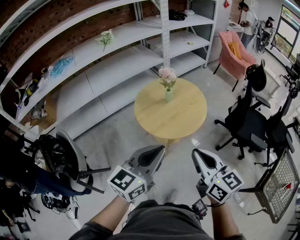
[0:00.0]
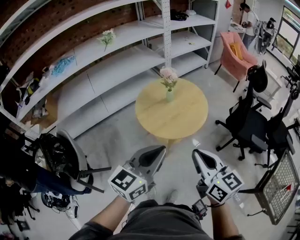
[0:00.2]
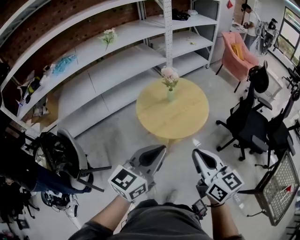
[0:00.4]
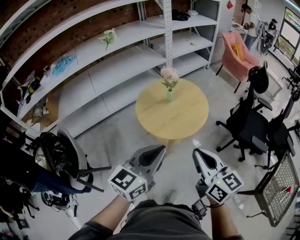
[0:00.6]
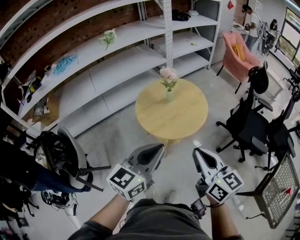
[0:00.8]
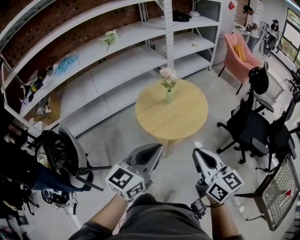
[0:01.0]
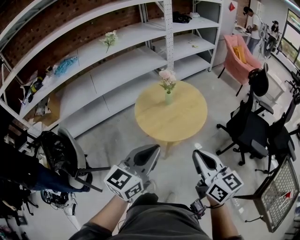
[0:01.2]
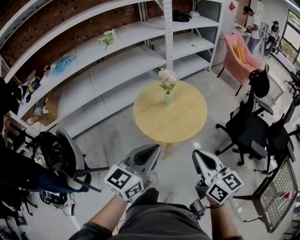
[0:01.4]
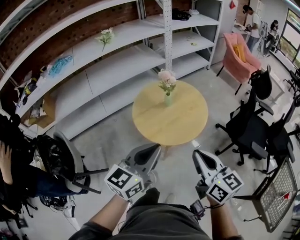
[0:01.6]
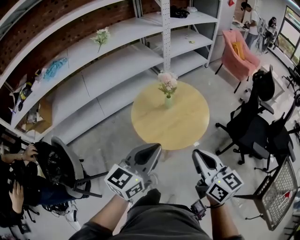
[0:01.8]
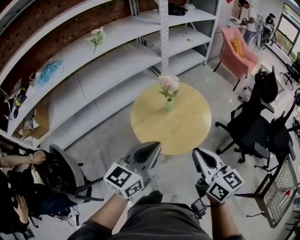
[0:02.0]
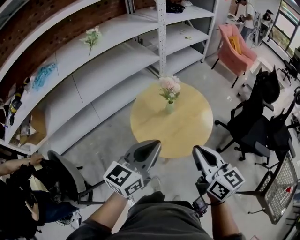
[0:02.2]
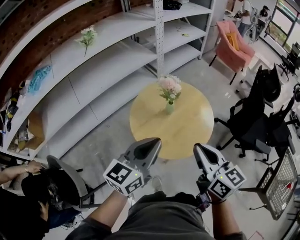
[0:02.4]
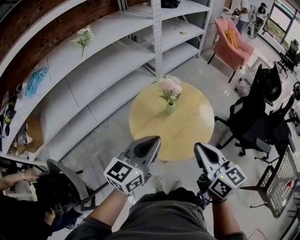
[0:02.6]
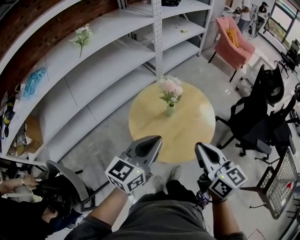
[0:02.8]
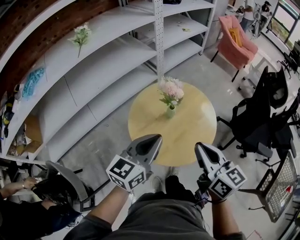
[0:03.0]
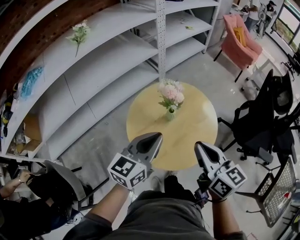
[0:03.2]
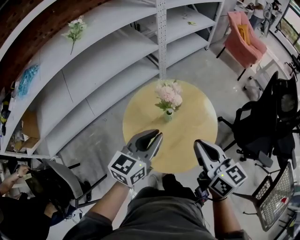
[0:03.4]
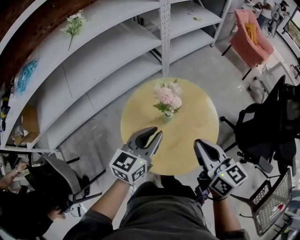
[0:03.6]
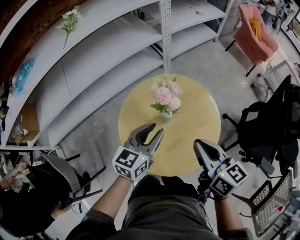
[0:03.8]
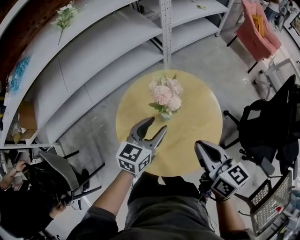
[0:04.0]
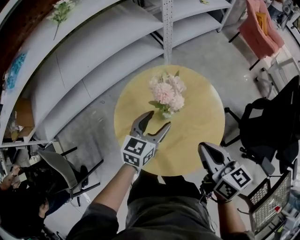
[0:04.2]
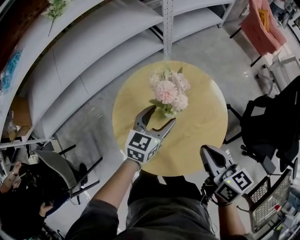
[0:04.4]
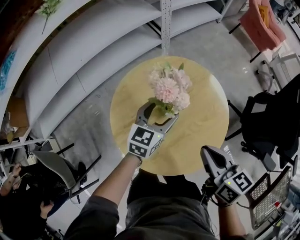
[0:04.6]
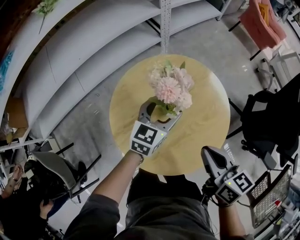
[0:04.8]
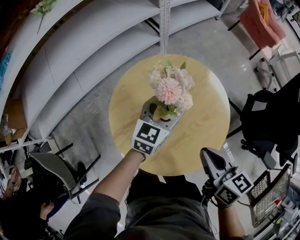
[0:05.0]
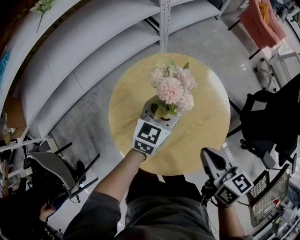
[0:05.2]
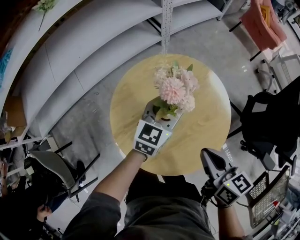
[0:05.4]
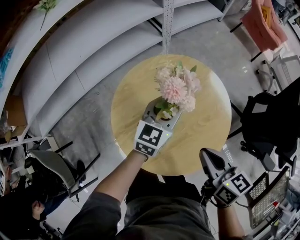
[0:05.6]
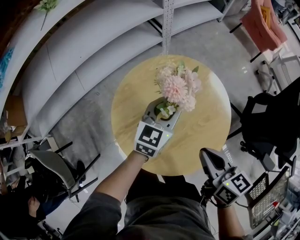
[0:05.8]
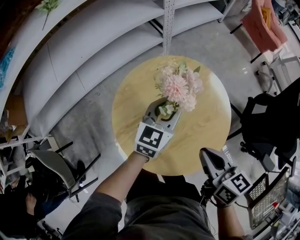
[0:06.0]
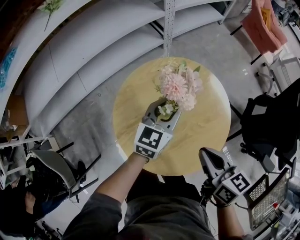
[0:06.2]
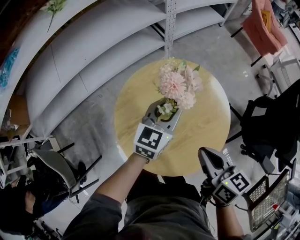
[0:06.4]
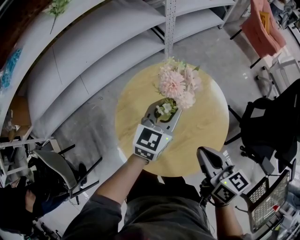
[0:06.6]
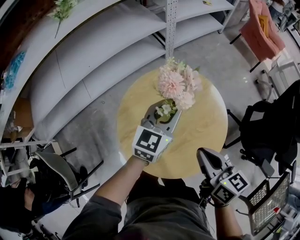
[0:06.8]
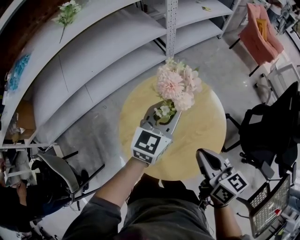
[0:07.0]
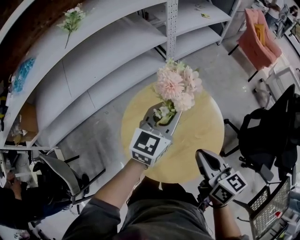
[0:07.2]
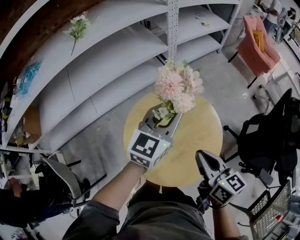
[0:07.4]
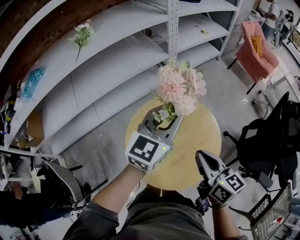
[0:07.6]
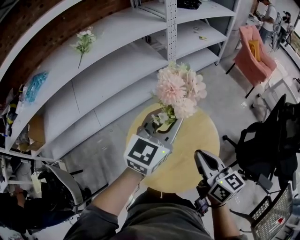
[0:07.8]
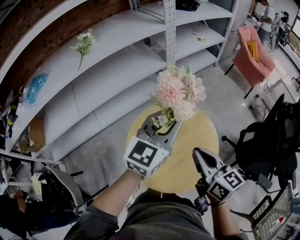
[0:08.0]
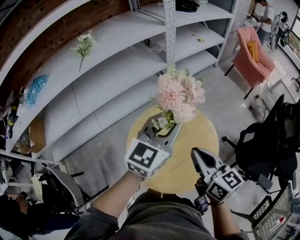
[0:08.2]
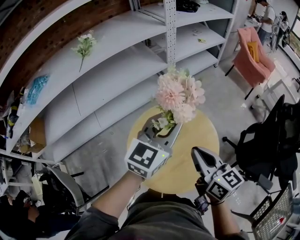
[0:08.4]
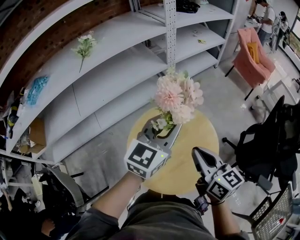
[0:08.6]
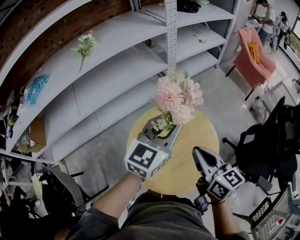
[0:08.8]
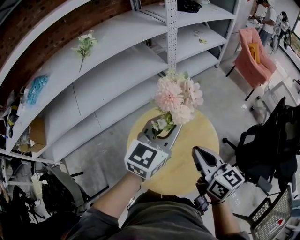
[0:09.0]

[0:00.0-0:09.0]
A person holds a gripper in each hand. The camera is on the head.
0:00.0 to 0:01.6: Both grippers travel together forward, some 5 cm.
0:01.6 to 0:03.0: The two grippers go approximately 25 cm forward.
0:03.0 to 0:04.4: The left gripper heads downward and forward, covering approximately 30 cm, and opens its fingers. Meanwhile the right gripper is displaced forward, downward and to the right by approximately 20 cm.
0:04.4 to 0:06.0: The left gripper closes its fingers.
0:06.0 to 0:07.6: The left gripper travels upward by roughly 25 cm. The right gripper heads upward, covering approximately 10 cm.
0:07.6 to 0:09.0: The grippers make only small movements.

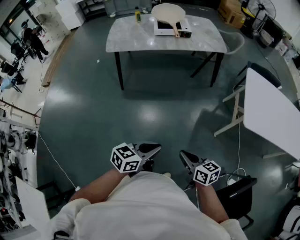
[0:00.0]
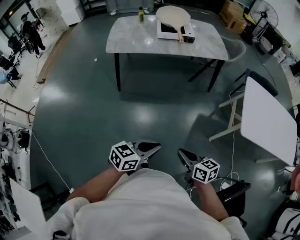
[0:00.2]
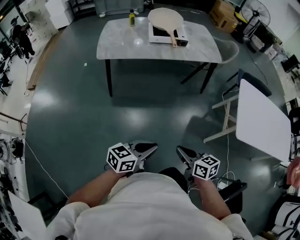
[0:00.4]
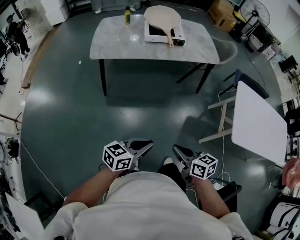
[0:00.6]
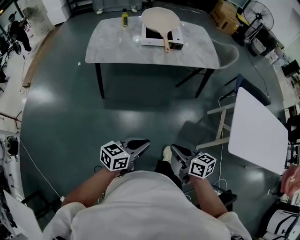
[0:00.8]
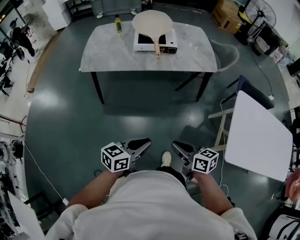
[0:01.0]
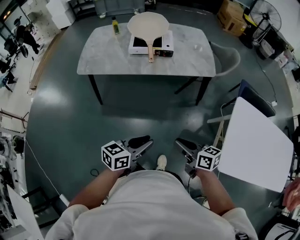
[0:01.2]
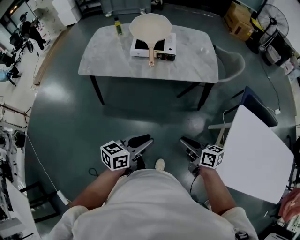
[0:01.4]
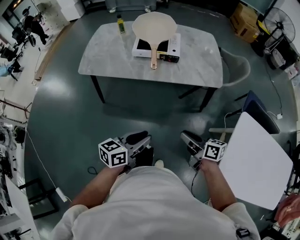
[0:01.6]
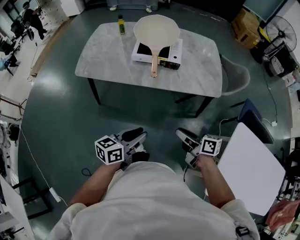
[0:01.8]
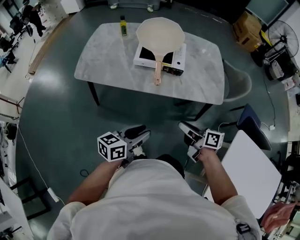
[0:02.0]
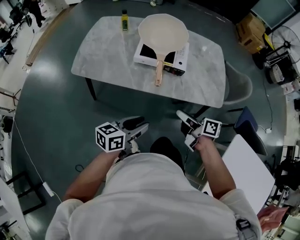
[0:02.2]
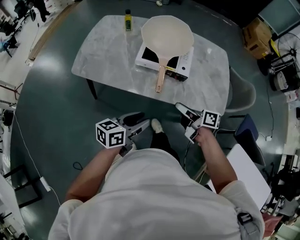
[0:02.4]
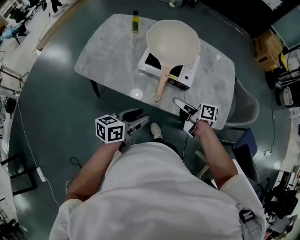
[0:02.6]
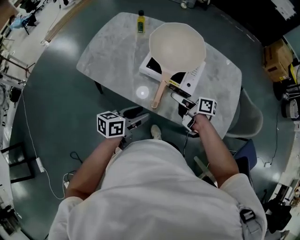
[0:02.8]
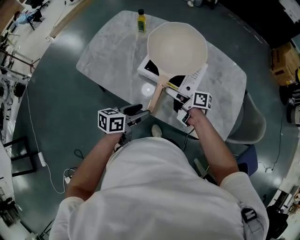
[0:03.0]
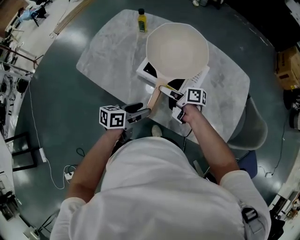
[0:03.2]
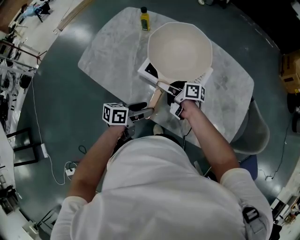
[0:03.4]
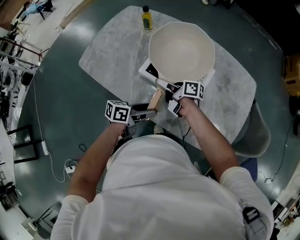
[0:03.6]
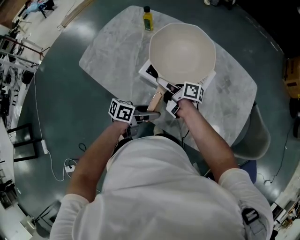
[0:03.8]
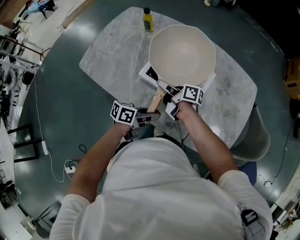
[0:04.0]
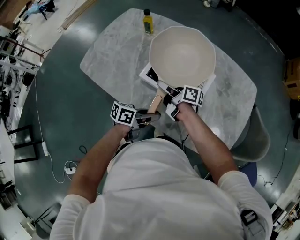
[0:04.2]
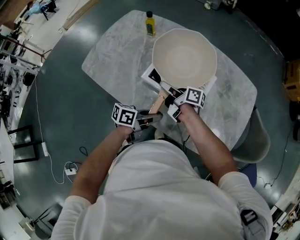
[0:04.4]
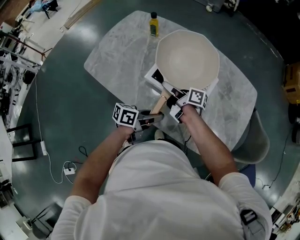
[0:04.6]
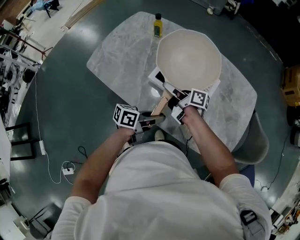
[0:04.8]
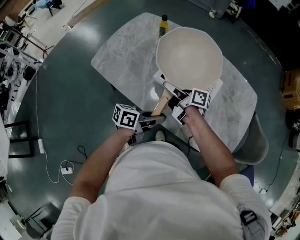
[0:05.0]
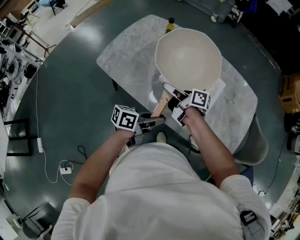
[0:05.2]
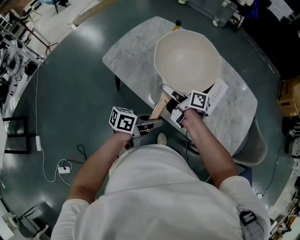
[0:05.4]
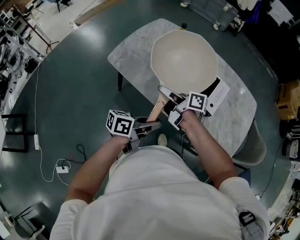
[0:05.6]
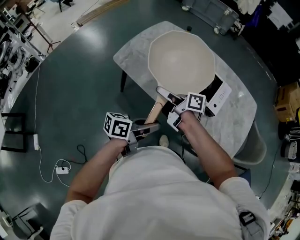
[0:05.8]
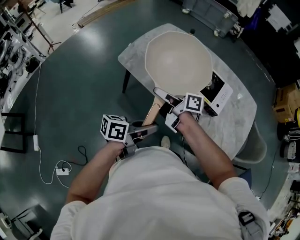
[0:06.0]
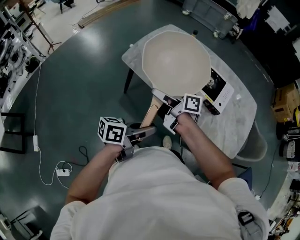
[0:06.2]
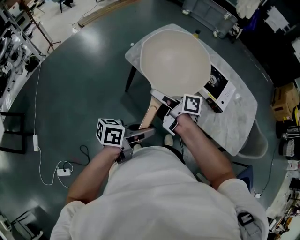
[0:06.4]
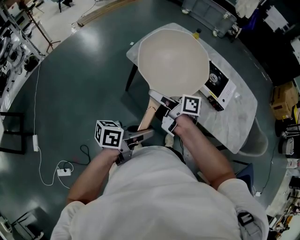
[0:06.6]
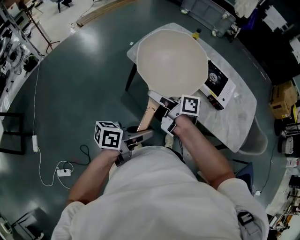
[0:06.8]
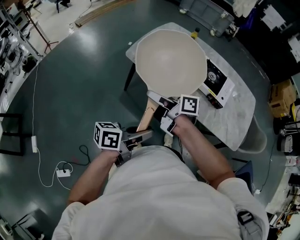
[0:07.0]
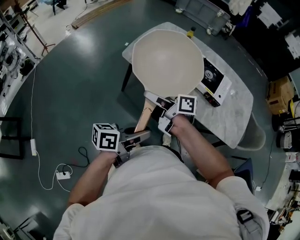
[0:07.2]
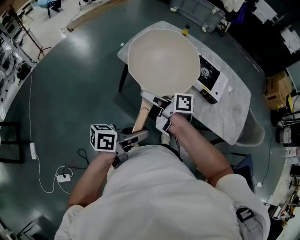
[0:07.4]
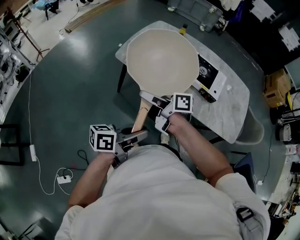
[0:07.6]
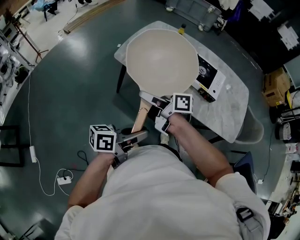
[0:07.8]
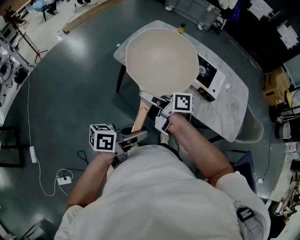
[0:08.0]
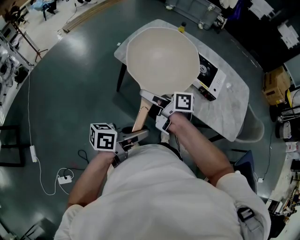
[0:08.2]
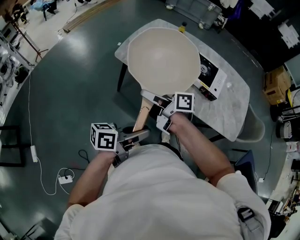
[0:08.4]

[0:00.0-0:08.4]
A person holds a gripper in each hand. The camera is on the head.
0:00.0 to 0:01.4: The grippers both shift forward by some 40 cm.
0:01.4 to 0:02.8: The pair of grippers is taken forward, roughly 50 cm. The right gripper turns by roughly 30 degrees, and opens its fingers, while the left gripper turns by approximately 20 degrees, and opens up.
0:02.8 to 0:04.2: The left gripper shifts by approximately 15 cm, and closes. The right gripper changes place by some 15 cm.
0:04.2 to 0:05.6: Both grippers move to the left, backward and upward, about 20 cm.
0:05.6 to 0:07.0: Both grippers travel together to the left, backward and upward, about 15 cm.
0:07.0 to 0:08.4: Neither gripper changes place.

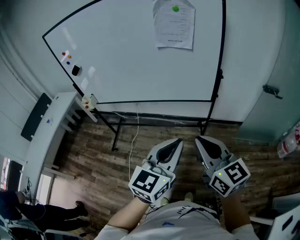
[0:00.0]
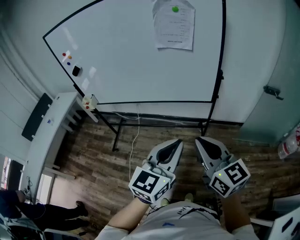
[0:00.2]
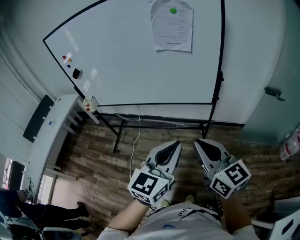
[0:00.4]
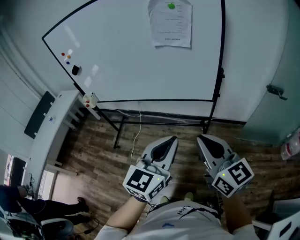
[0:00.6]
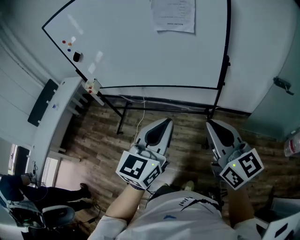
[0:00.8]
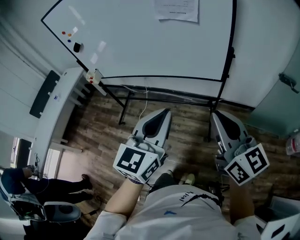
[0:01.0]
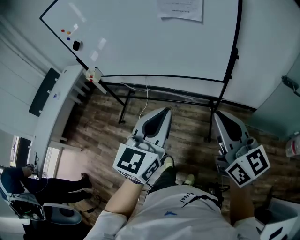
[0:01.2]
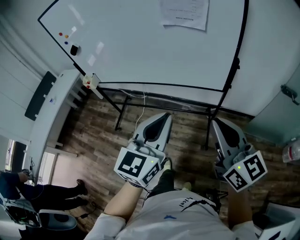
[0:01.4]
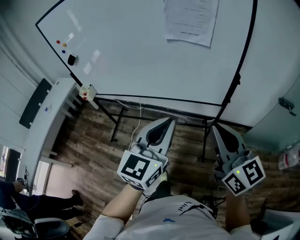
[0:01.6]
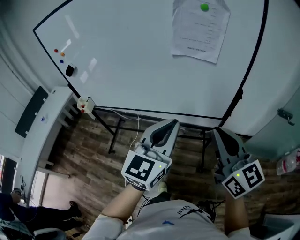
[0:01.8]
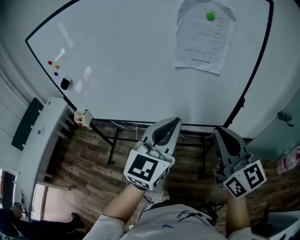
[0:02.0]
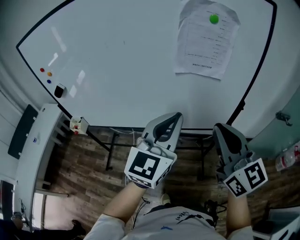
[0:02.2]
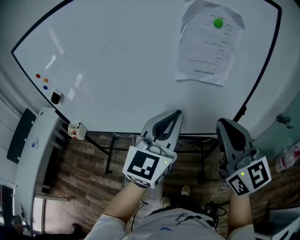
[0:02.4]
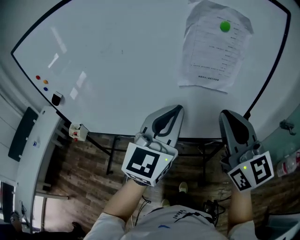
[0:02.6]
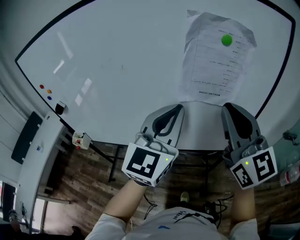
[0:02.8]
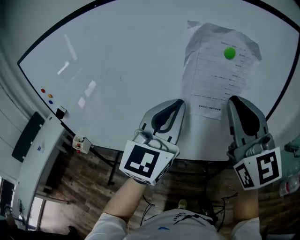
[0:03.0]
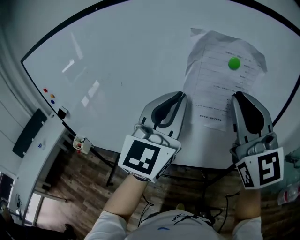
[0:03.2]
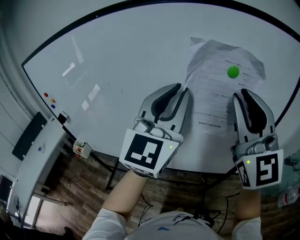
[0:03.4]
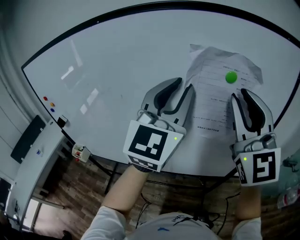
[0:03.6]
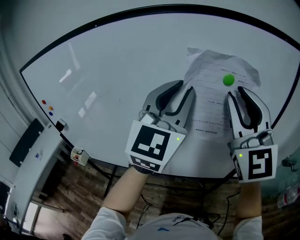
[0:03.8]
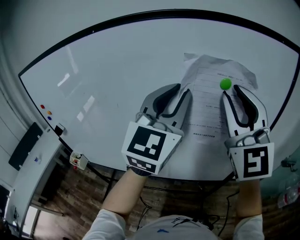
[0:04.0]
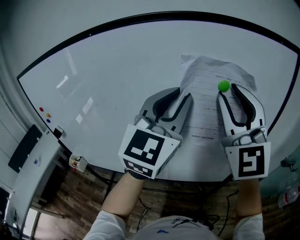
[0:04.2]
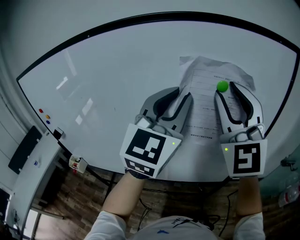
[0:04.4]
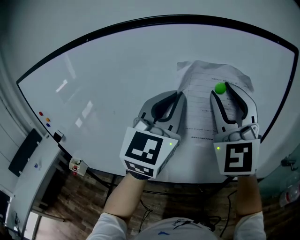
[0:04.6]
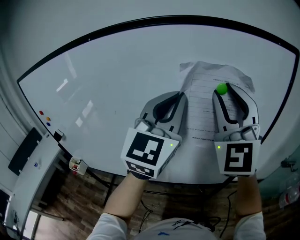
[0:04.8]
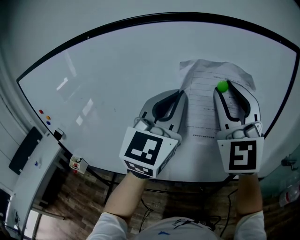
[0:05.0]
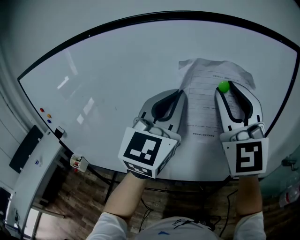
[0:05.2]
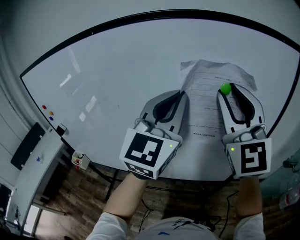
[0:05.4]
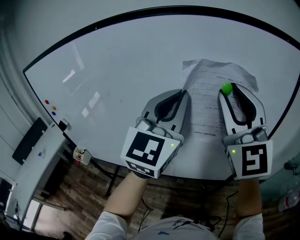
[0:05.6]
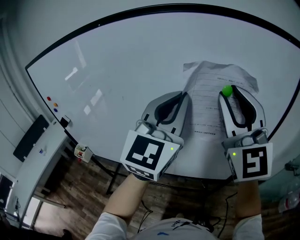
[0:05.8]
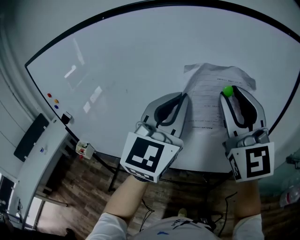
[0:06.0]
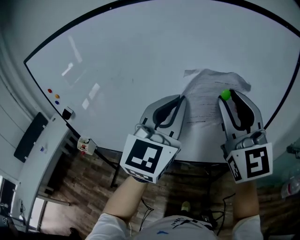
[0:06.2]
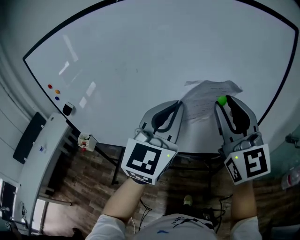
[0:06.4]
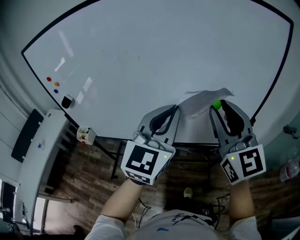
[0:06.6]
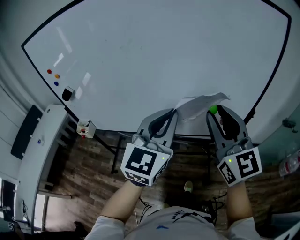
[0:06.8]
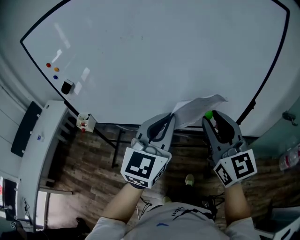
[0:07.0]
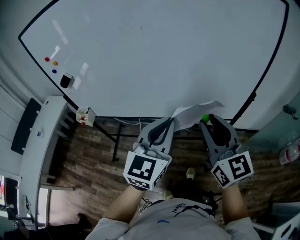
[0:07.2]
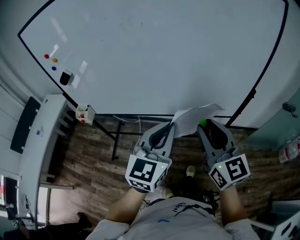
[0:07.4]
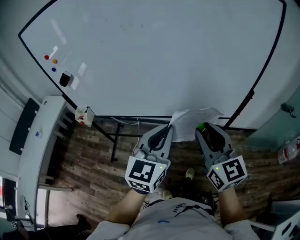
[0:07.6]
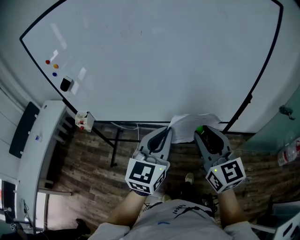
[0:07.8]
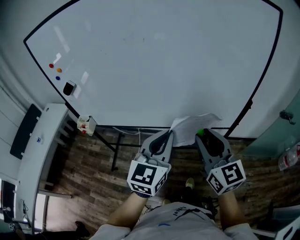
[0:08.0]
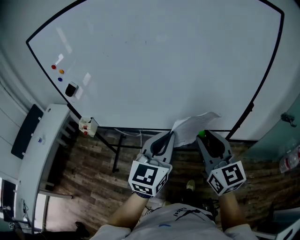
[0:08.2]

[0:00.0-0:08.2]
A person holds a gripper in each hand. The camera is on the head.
0:00.0 to 0:01.6: The grippers both shift forward by about 15 cm.
0:01.6 to 0:03.2: The two grippers go some 40 cm forward and upward. The right gripper changes its angle by approximately 40 degrees, while the left gripper rotates some 20 degrees.
0:03.2 to 0:05.0: The left gripper shifts approximately 5 cm upward. Meanwhile the right gripper heads upward and forward, covering roughly 5 cm, changes its angle by about 20 degrees, and opens its fingers.
0:05.0 to 0:06.6: Both grippers travel together backward, downward and to the left, roughly 20 cm. The right gripper turns by approximately 30 degrees.
0:06.6 to 0:08.2: Both grippers travel together downward and backward, approximately 15 cm.
